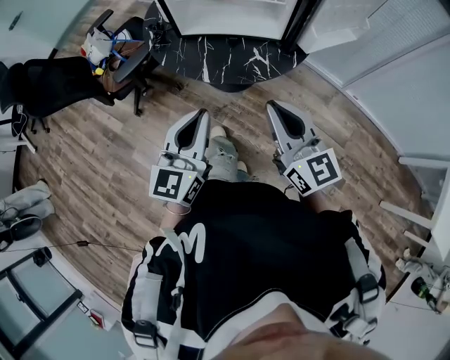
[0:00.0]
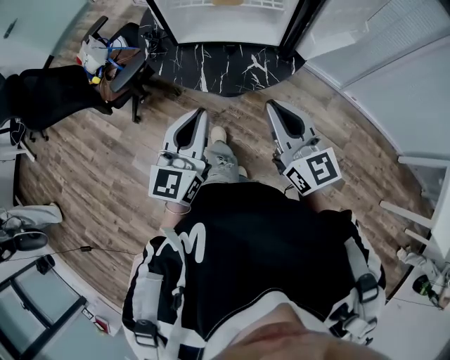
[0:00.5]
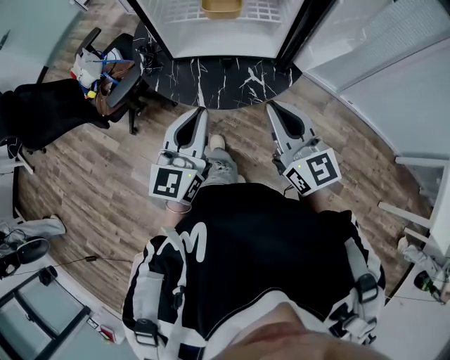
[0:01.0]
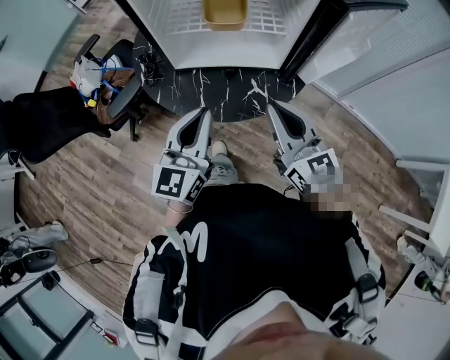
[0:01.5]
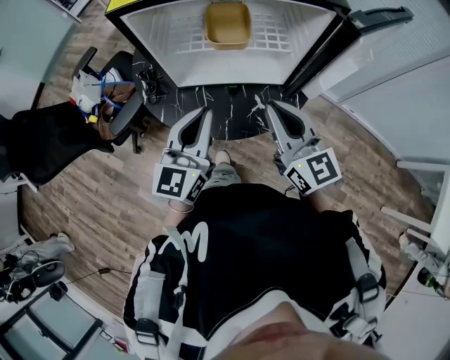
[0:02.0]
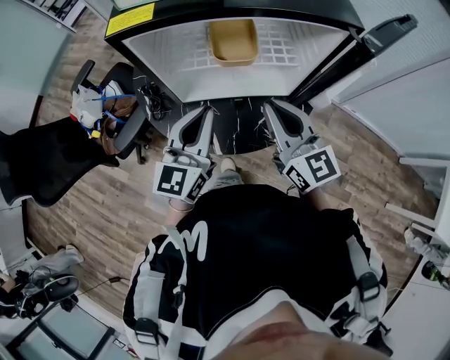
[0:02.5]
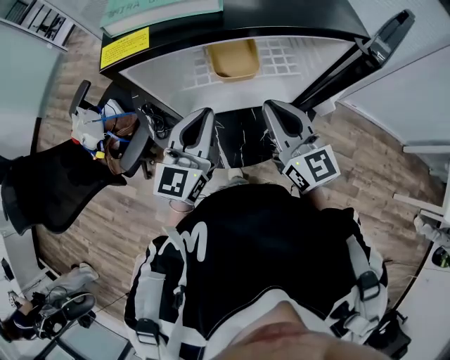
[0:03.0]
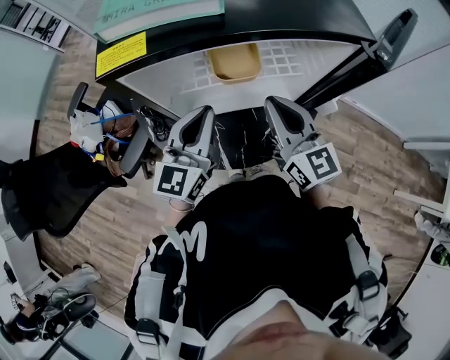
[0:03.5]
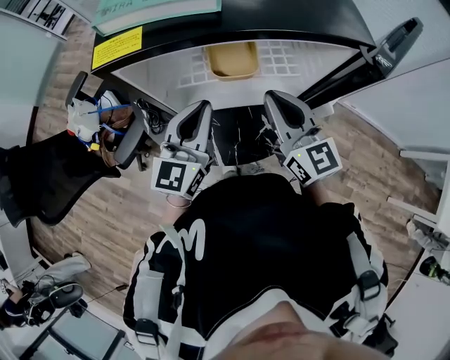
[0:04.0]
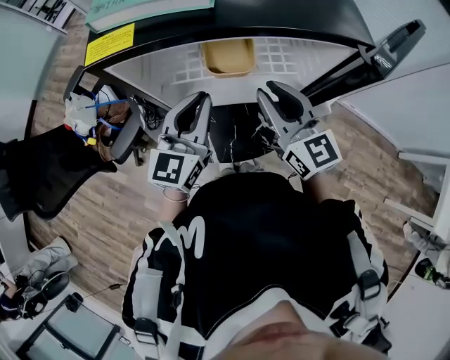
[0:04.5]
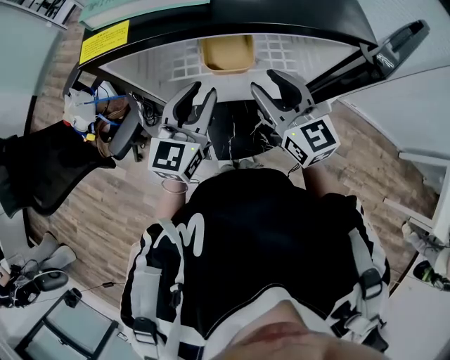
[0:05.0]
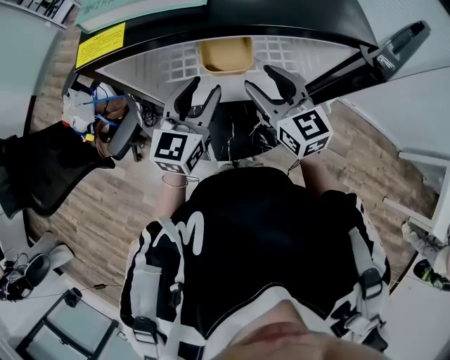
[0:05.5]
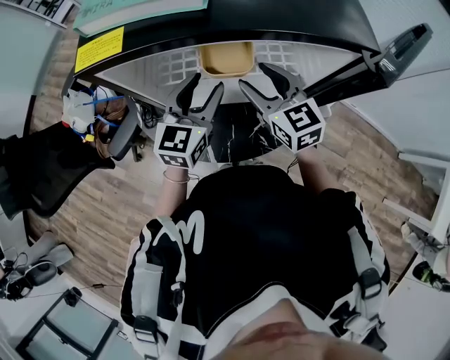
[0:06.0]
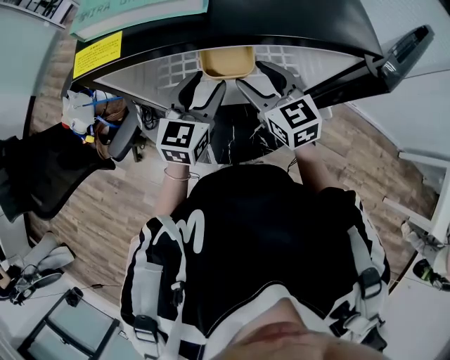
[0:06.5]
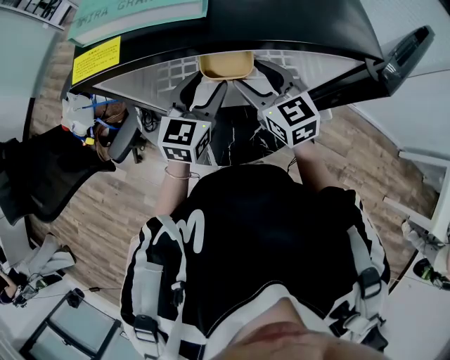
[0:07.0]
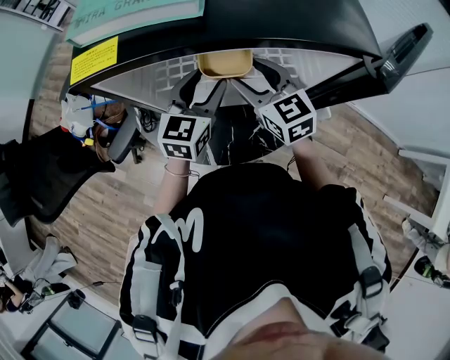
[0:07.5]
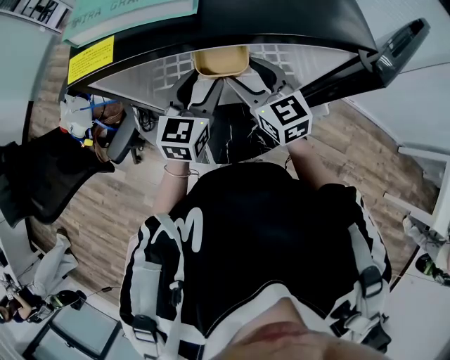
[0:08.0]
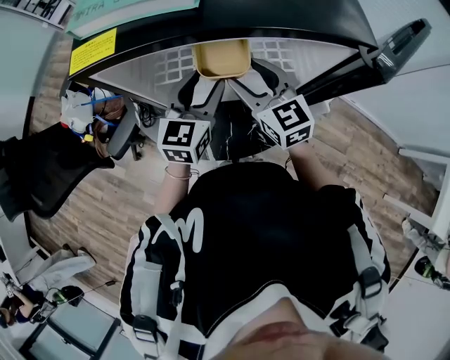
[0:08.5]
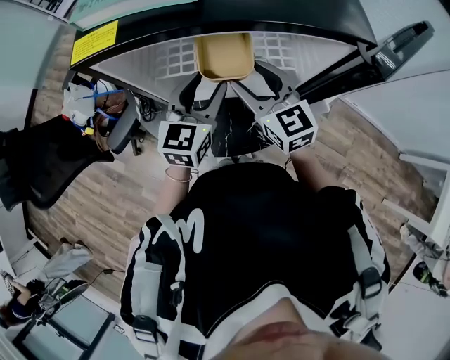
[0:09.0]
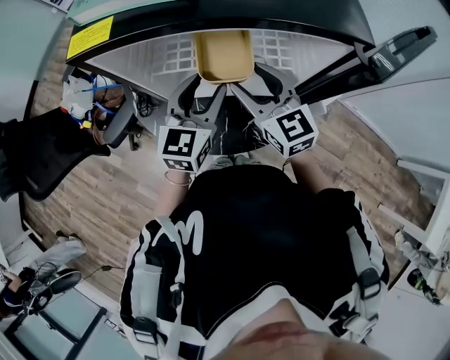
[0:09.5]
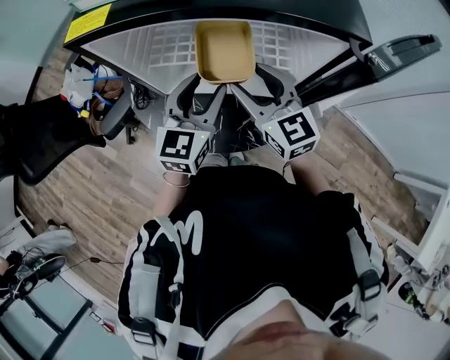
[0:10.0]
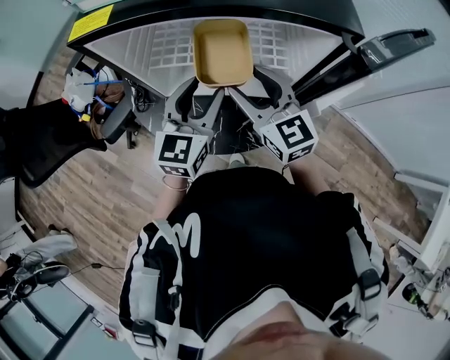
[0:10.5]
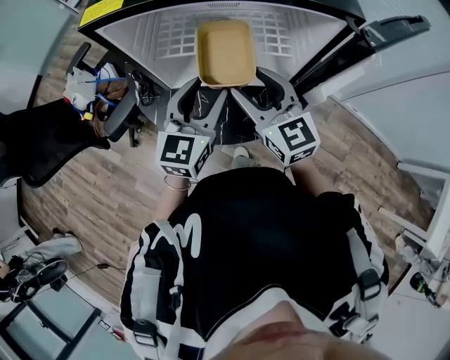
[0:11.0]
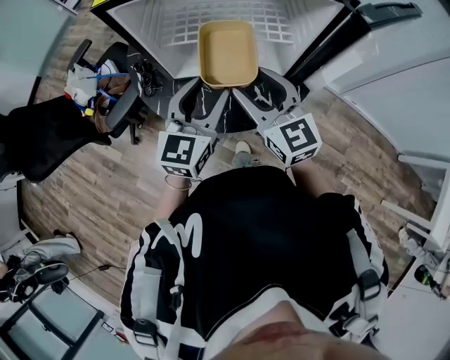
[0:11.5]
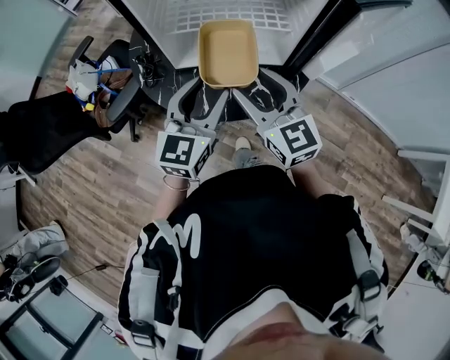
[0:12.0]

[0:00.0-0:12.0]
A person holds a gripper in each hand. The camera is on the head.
0:00.0 to 0:02.0: Both grippers travel together forward, about 20 cm.
0:02.0 to 0:04.0: The two grippers go about 10 cm forward.
0:04.0 to 0:06.0: The right gripper goes approximately 10 cm forward and downward, and opens its fingers. Meanwhile the left gripper is displaced forward by approximately 5 cm, and opens.
0:06.0 to 0:08.0: The grippers make only small movements.
0:08.0 to 0:10.0: Both grippers move backward, some 5 cm.
0:10.0 to 0:12.0: The grippers both shift backward by approximately 15 cm.

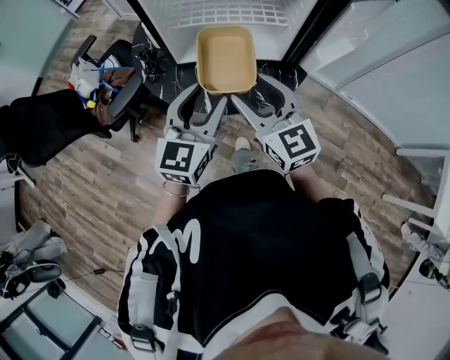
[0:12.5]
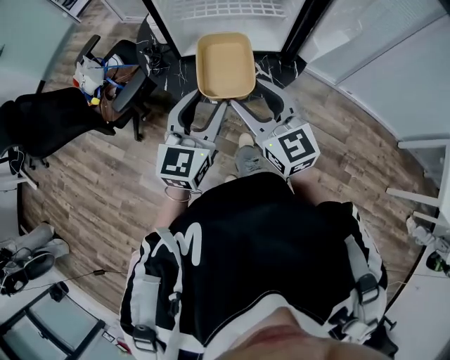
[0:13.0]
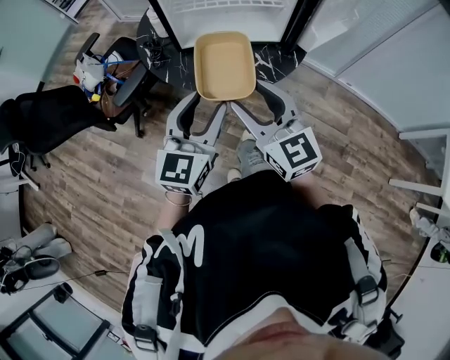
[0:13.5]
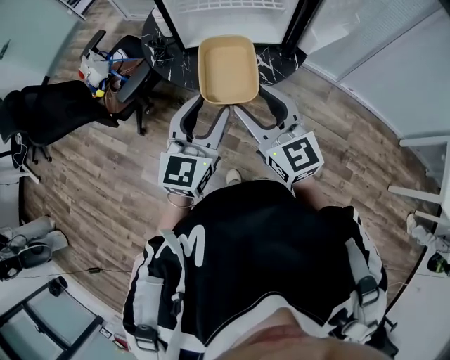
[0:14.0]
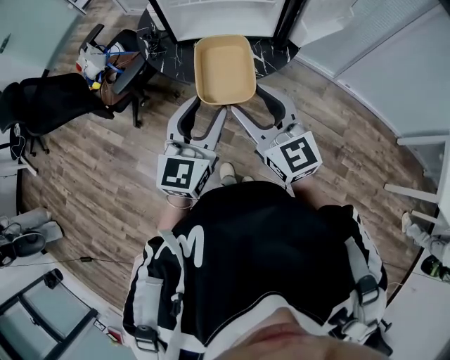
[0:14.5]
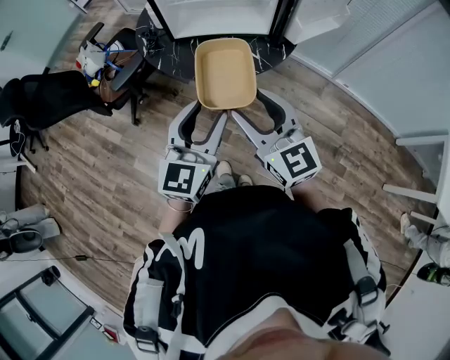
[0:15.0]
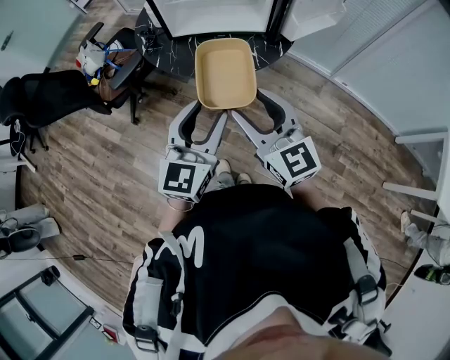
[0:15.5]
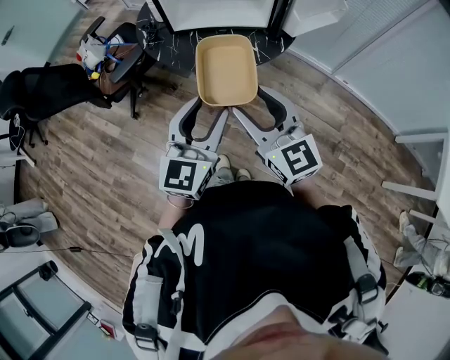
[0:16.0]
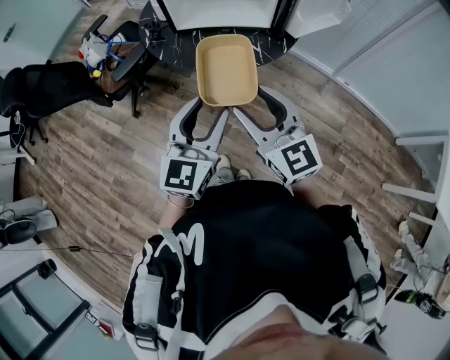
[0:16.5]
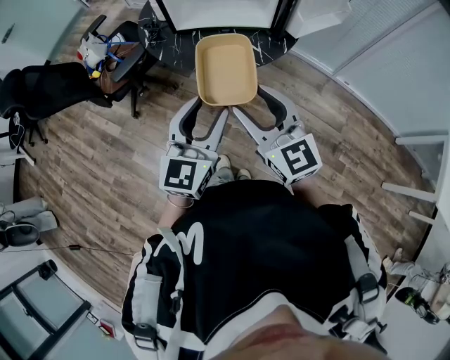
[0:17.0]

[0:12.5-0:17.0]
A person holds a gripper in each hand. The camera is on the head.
0:12.5 to 0:14.5: Both grippers travel together backward, some 15 cm.
0:14.5 to 0:17.0: Both grippers move backward, approximately 5 cm.

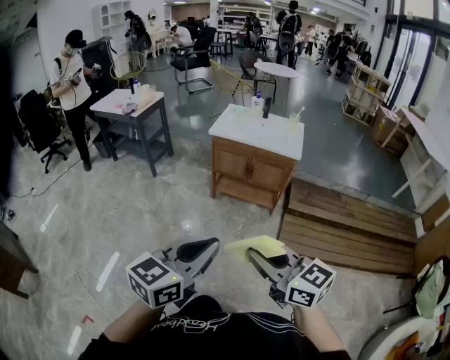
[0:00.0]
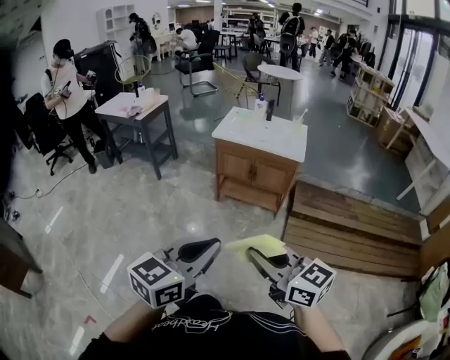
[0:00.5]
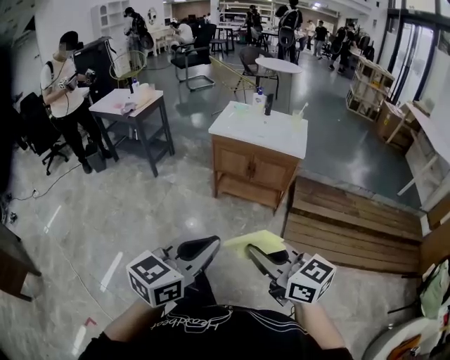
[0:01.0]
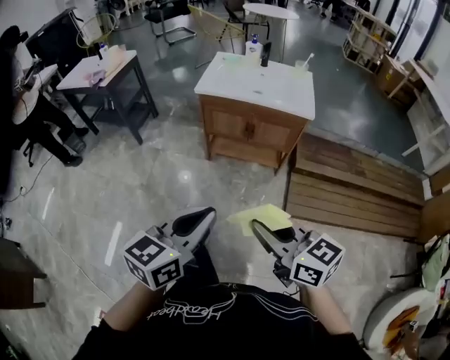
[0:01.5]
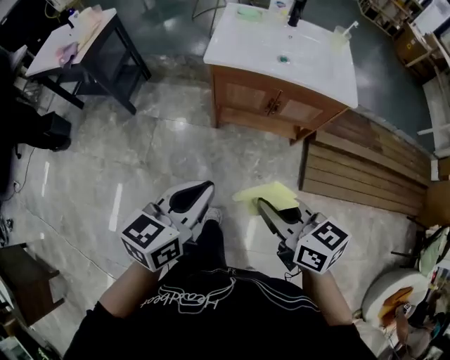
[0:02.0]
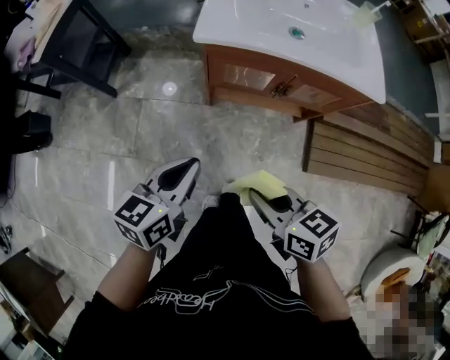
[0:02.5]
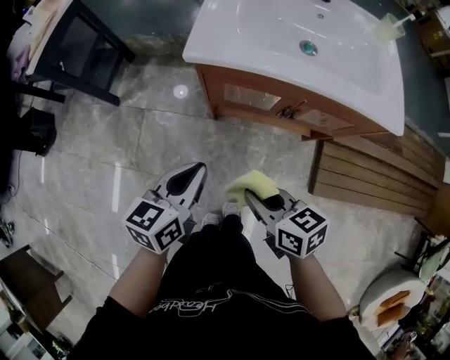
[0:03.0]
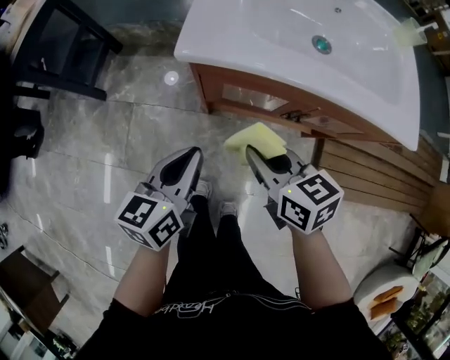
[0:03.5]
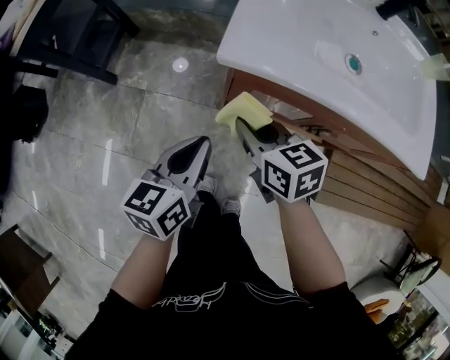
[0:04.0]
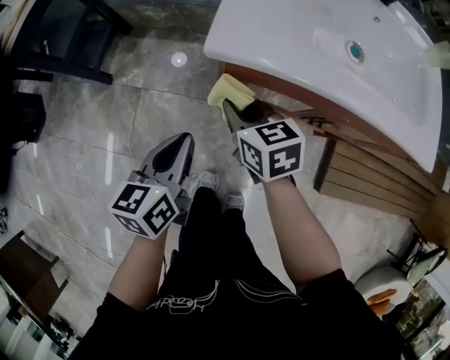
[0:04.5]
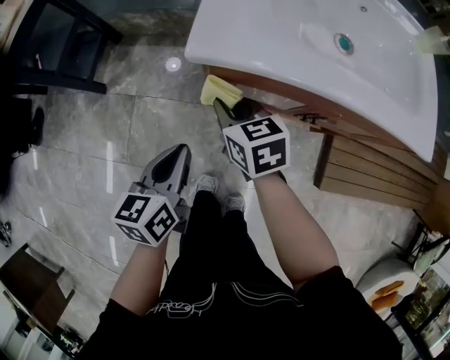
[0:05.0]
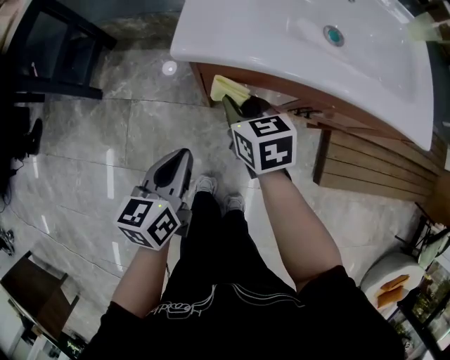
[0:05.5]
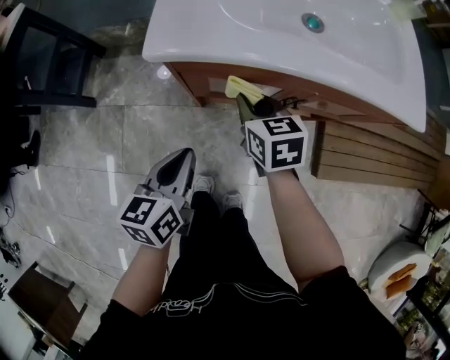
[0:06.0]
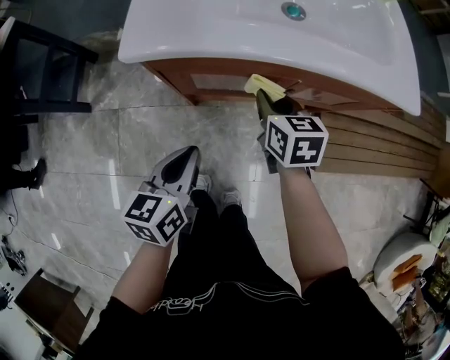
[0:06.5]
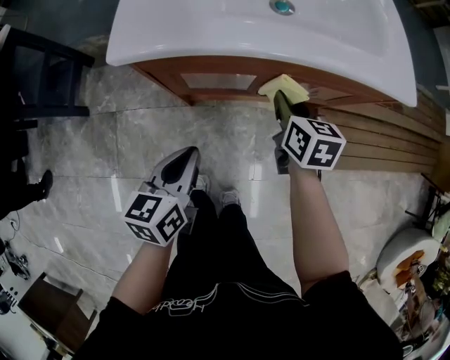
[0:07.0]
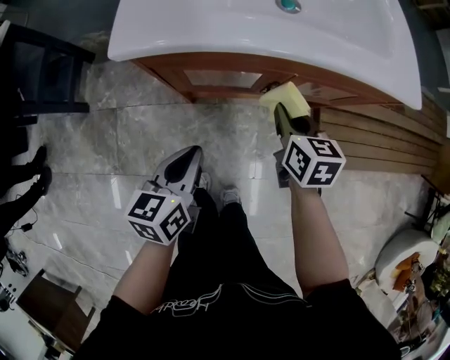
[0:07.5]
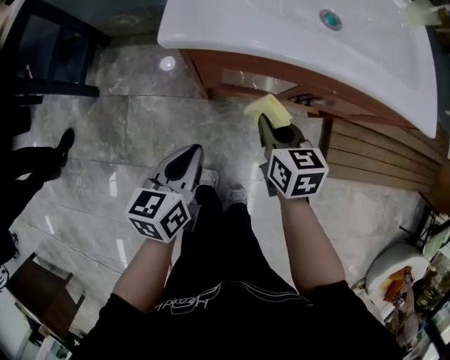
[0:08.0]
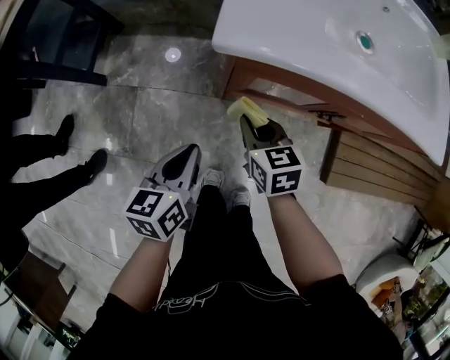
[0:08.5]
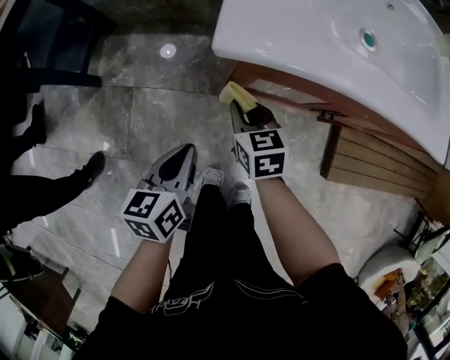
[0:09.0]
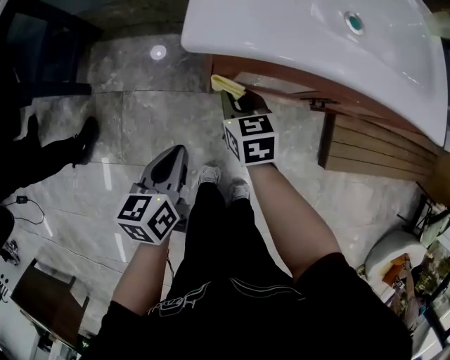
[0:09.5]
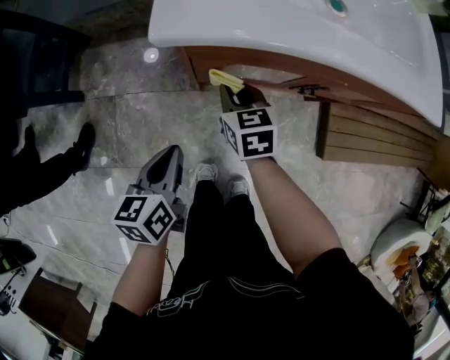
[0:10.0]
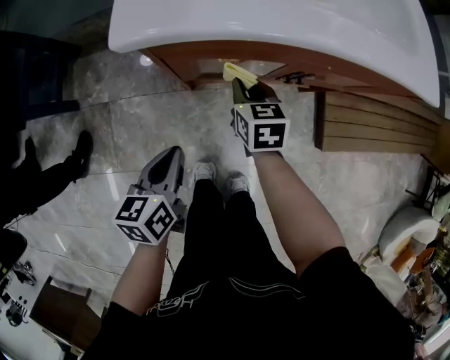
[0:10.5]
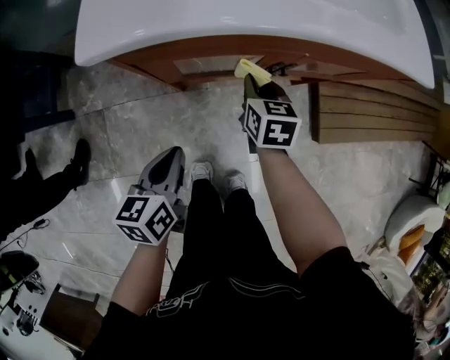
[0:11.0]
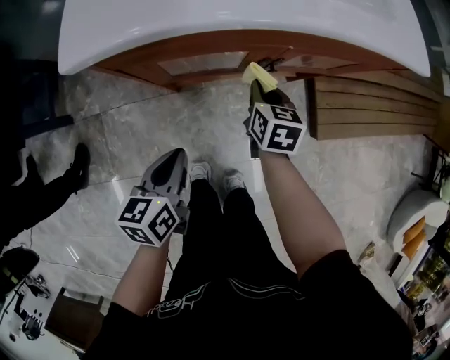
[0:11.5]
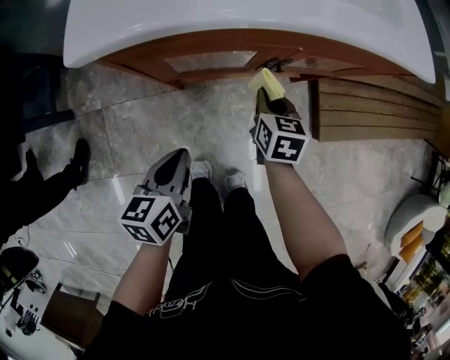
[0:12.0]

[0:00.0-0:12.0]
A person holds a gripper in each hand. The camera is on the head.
0:00.0 to 0:02.0: The two grippers go roughly 40 cm forward and downward. The right gripper changes its angle by some 30 degrees.
0:02.0 to 0:04.0: Both grippers travel together forward and downward, approximately 40 cm.
0:04.0 to 0:06.0: The left gripper shifts by some 5 cm. Meanwhile the right gripper goes some 10 cm to the right, and rotates some 20 degrees.
0:06.0 to 0:08.0: The right gripper heads backward, covering some 5 cm, and travels to the right and back again, some 15 cm each way.
0:08.0 to 0:10.0: The left gripper shifts approximately 5 cm to the left. The right gripper travels to the left, downward and forward by roughly 15 cm.
0:10.0 to 0:12.0: The right gripper shifts roughly 20 cm to the right, and turns by approximately 20 degrees; the left gripper travels to the right by about 10 cm.
